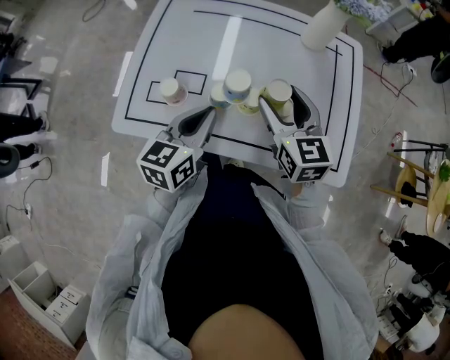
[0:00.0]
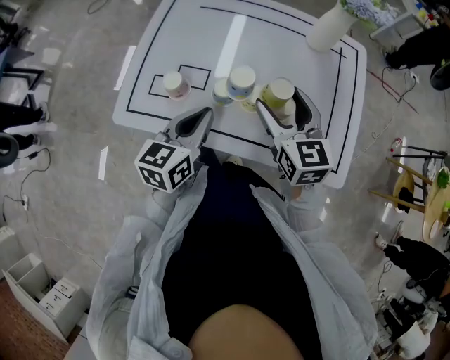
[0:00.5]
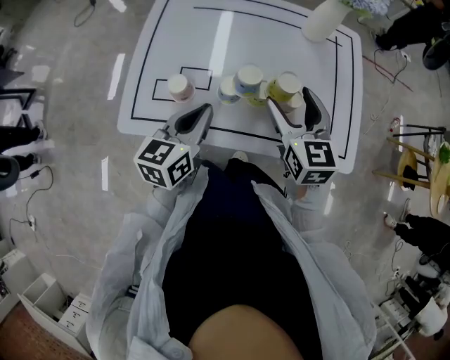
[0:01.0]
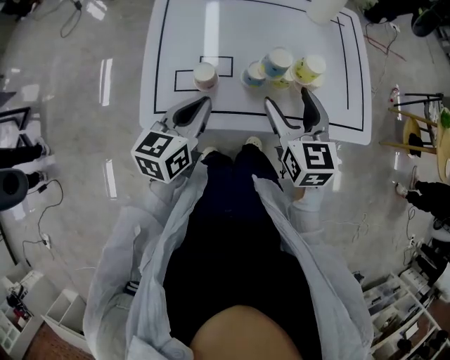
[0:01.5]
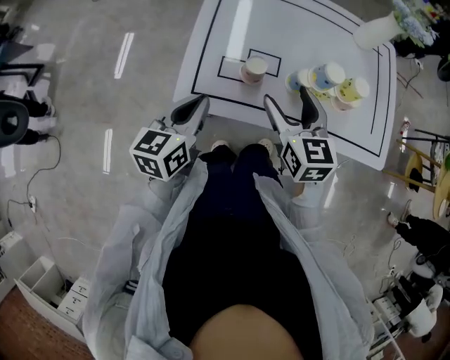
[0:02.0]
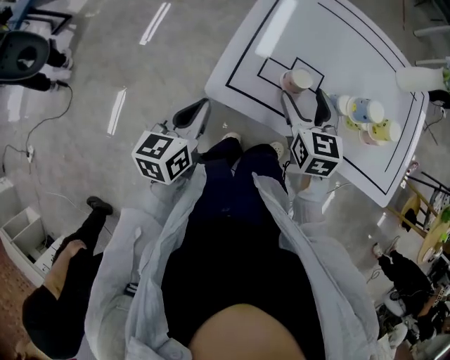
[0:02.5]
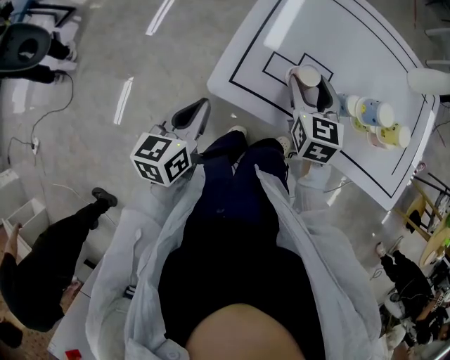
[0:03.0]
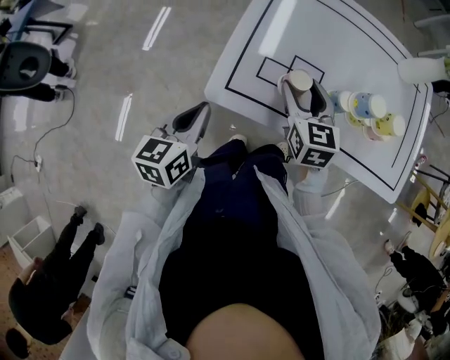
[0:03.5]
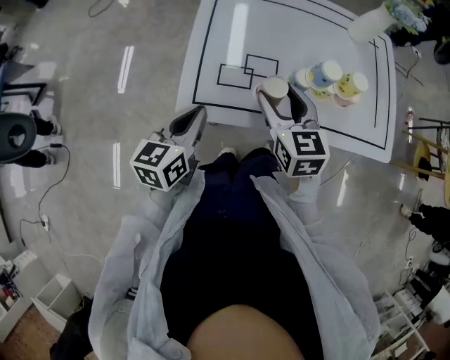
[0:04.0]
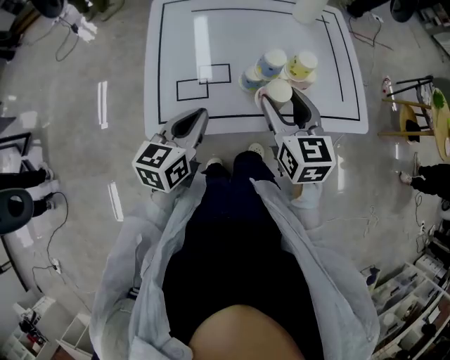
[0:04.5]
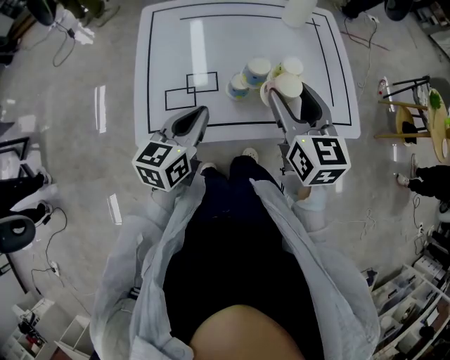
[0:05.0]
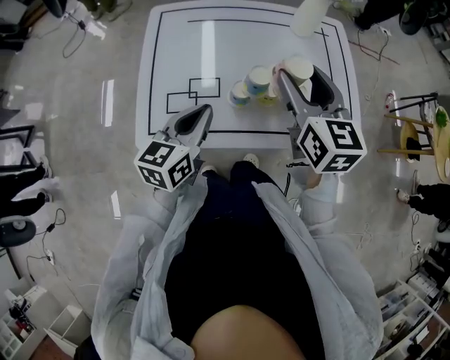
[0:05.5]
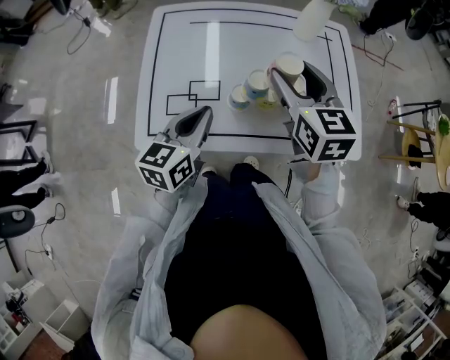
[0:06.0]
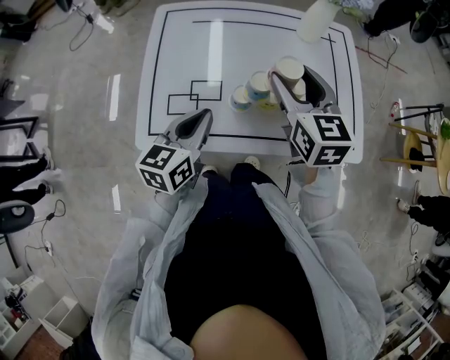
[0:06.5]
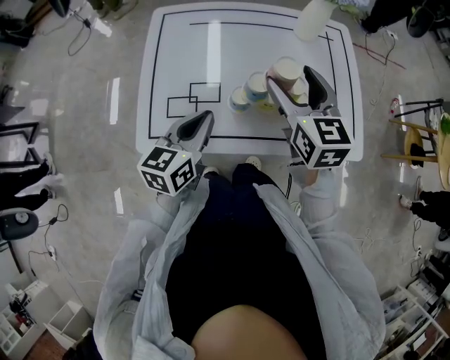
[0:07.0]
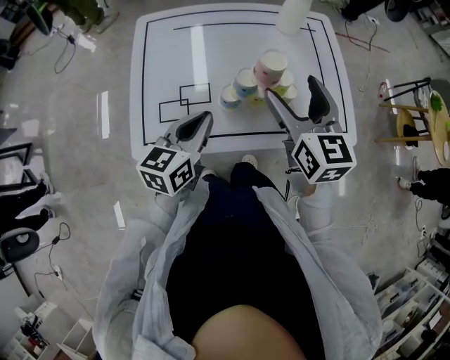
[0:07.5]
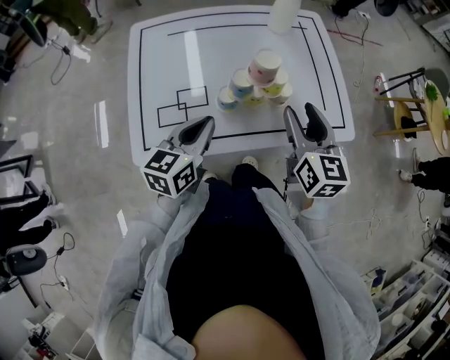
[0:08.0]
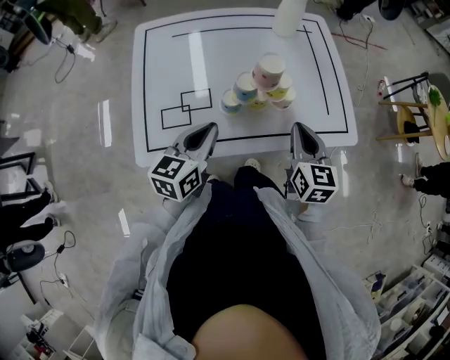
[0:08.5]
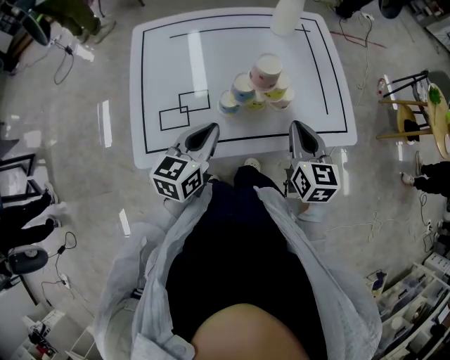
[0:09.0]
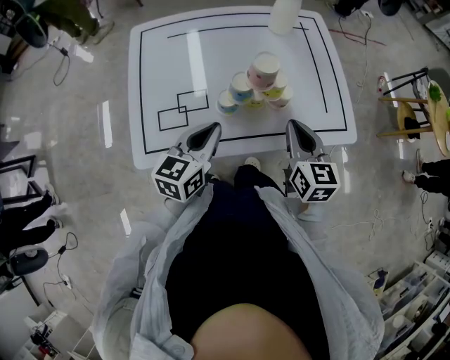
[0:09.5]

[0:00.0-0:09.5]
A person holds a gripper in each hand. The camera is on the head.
0:00.0 to 0:02.0: The right gripper travels to the left and backward by approximately 20 cm. Meanwhile the left gripper shifts some 25 cm to the left.
0:02.0 to 0:04.0: The right gripper moves roughly 10 cm downward and comes back, while the left gripper reaches some 10 cm to the left, then returns.
0:04.0 to 0:05.5: The right gripper heads to the right, upward and forward, covering about 25 cm, while the left gripper moves to the right and forward, approximately 20 cm.
0:05.5 to 0:07.5: The grippers move only a little.
0:07.5 to 0:09.5: The right gripper moves downward and to the right, approximately 10 cm, and closes up.

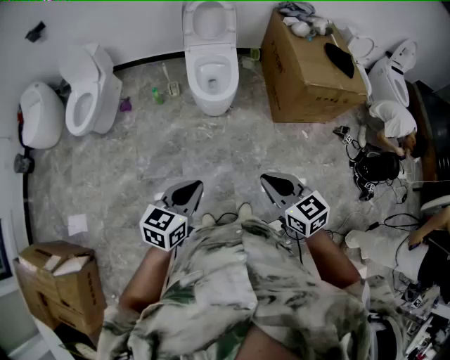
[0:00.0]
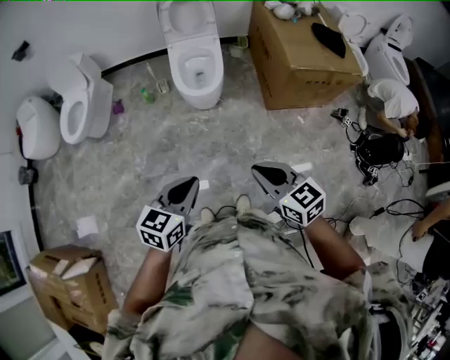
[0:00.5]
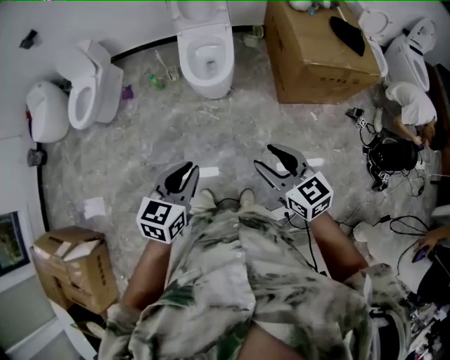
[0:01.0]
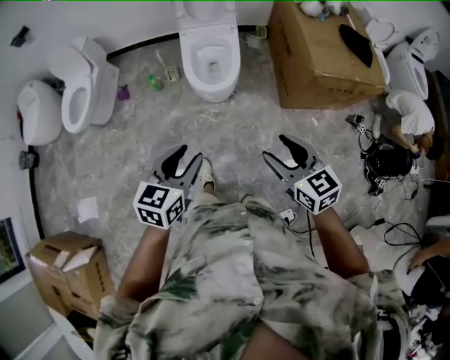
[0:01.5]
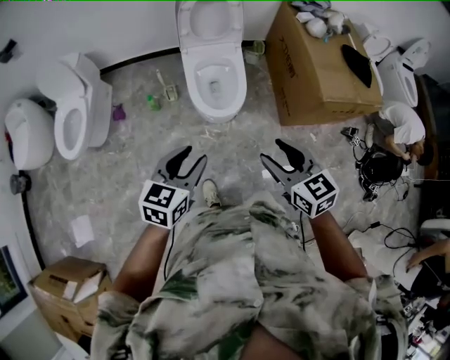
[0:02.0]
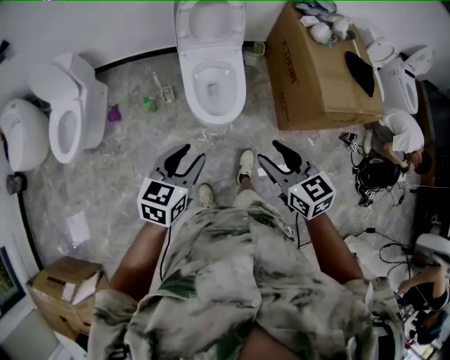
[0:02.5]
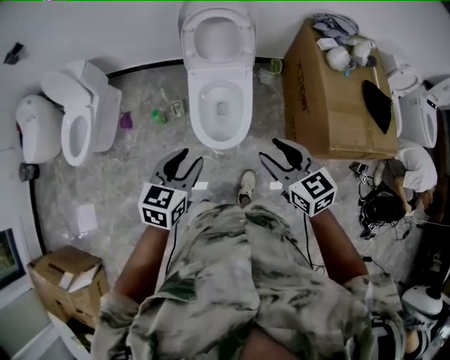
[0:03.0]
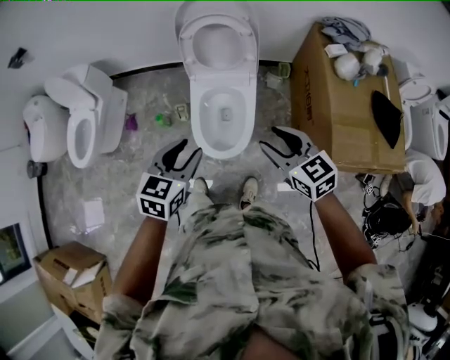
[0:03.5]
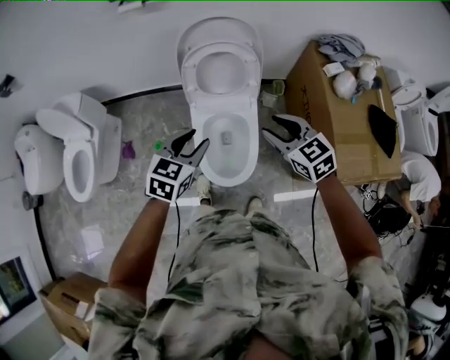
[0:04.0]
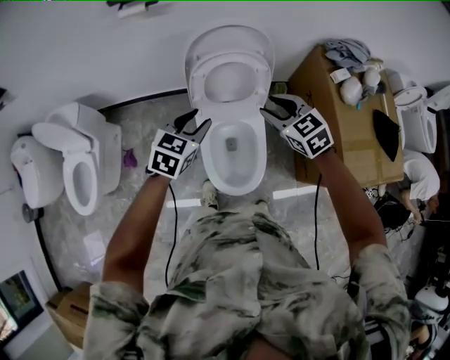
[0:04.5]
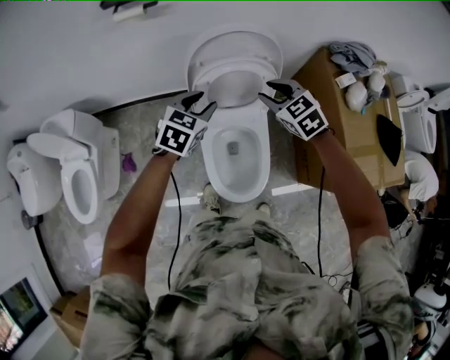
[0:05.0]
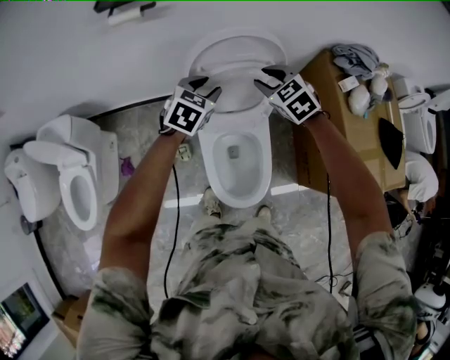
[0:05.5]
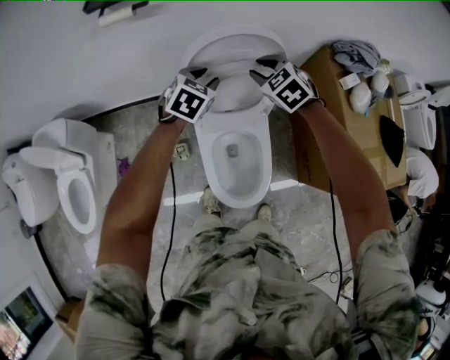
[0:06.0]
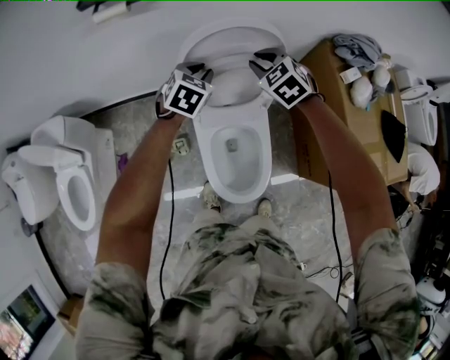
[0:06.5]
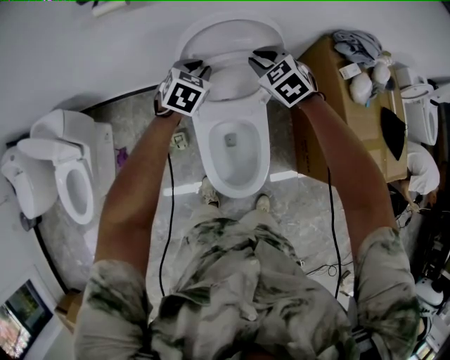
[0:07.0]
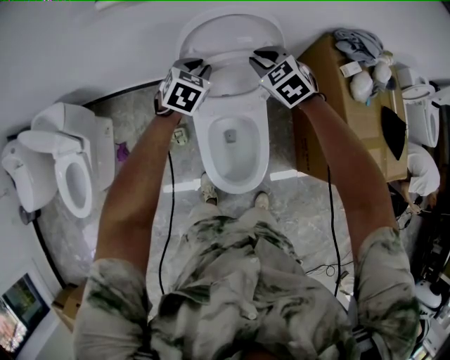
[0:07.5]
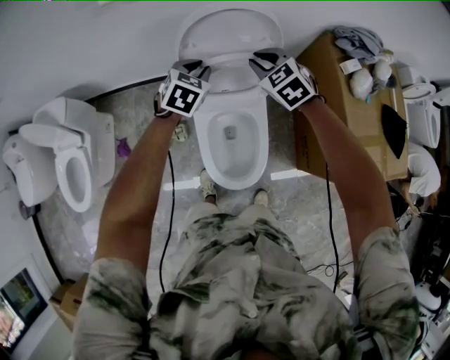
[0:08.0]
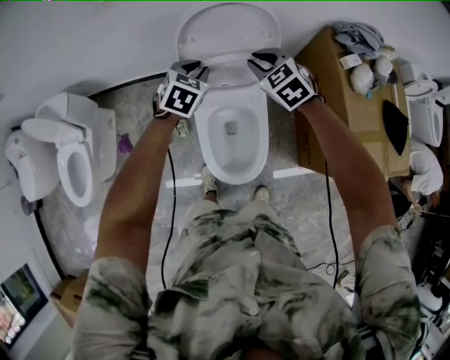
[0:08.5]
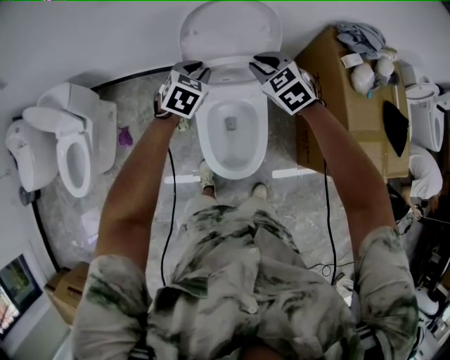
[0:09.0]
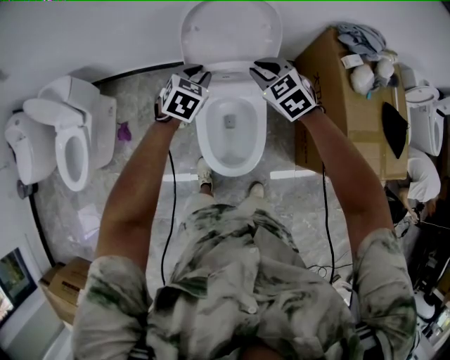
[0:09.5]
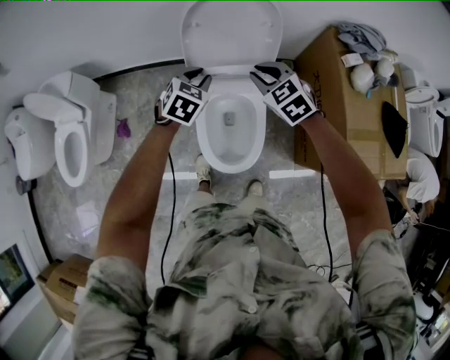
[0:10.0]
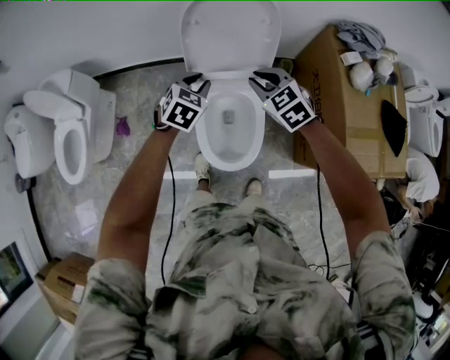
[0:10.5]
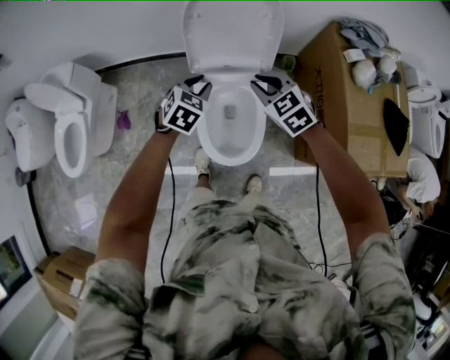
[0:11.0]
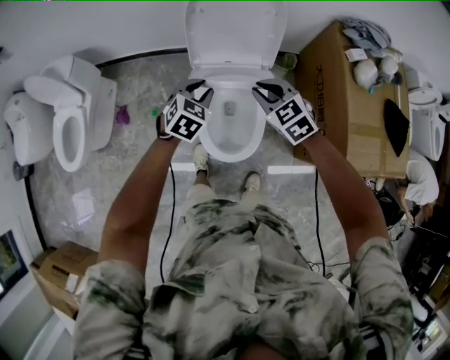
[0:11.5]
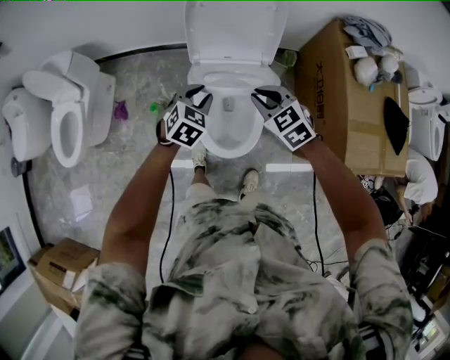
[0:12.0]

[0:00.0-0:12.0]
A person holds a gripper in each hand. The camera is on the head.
0:00.0 to 0:02.0: Both grippers travel together forward, approximately 35 cm. The left gripper opens, while the right gripper opens.
0:02.0 to 0:04.0: The pair of grippers is taken forward, about 50 cm.
0:04.0 to 0:06.0: The grippers both shift forward by about 35 cm. The right gripper turns by some 30 degrees.
0:06.0 to 0:08.0: The two grippers go approximately 5 cm backward.
0:08.0 to 0:10.0: Both grippers travel together backward, approximately 10 cm.
0:10.0 to 0:12.0: Both grippers travel together backward, some 10 cm.

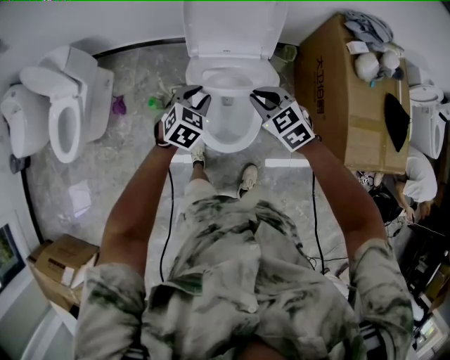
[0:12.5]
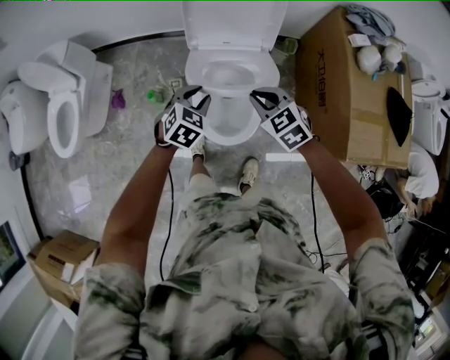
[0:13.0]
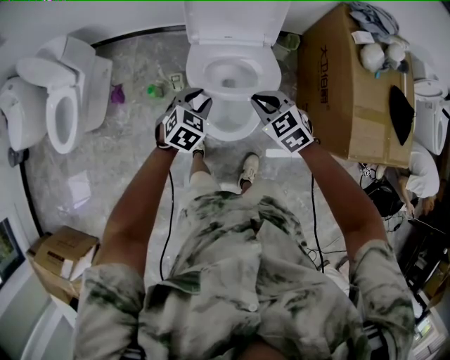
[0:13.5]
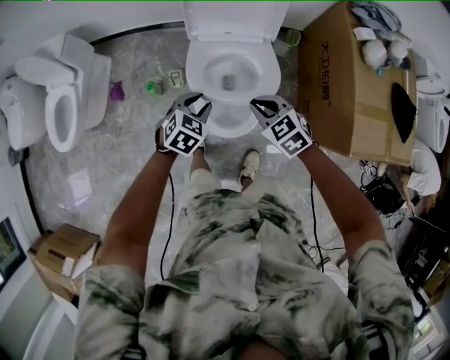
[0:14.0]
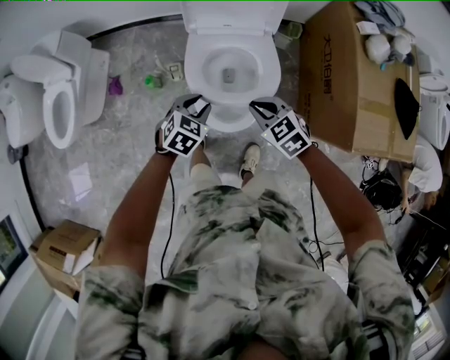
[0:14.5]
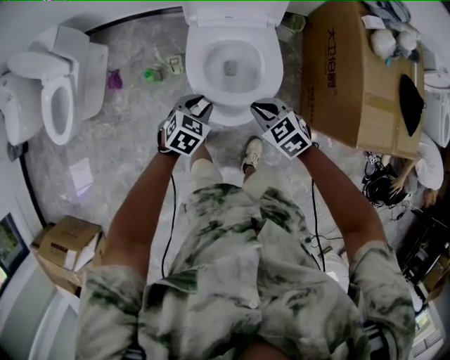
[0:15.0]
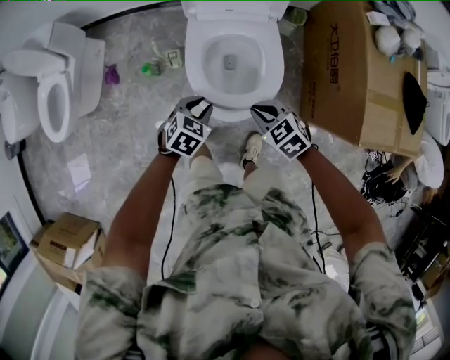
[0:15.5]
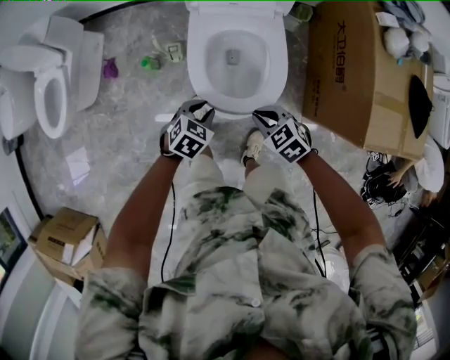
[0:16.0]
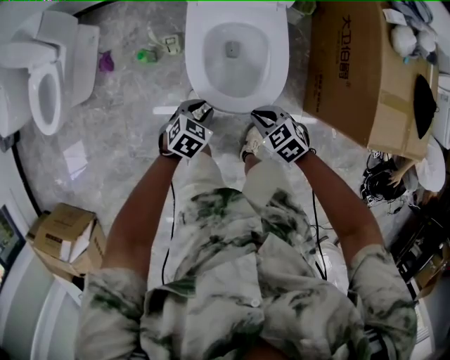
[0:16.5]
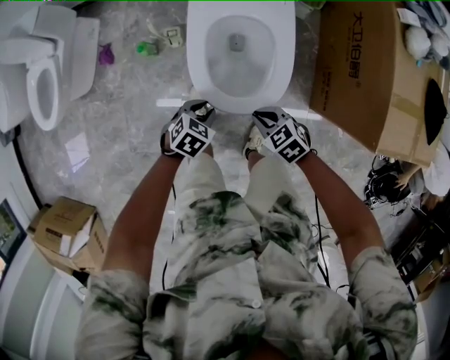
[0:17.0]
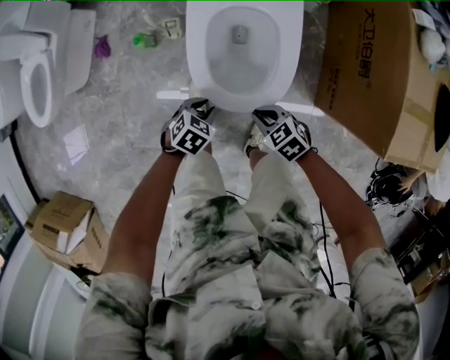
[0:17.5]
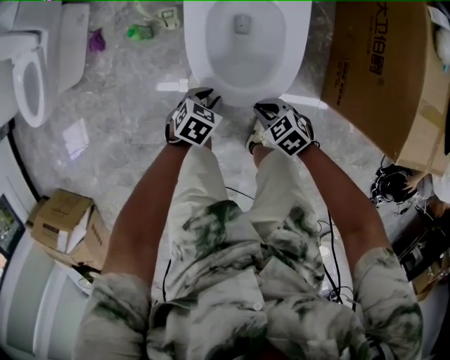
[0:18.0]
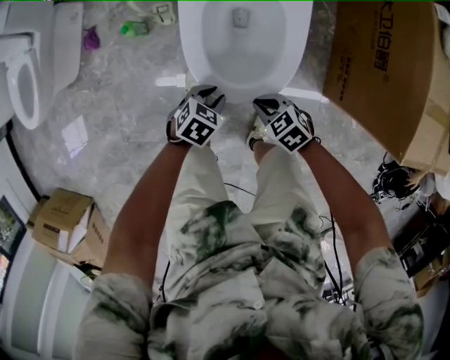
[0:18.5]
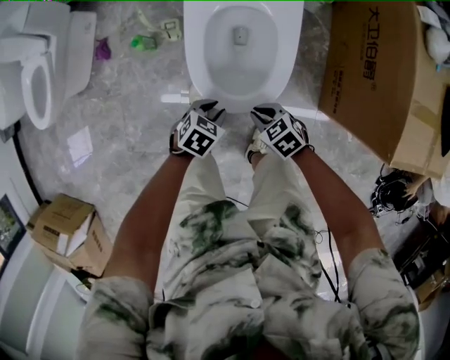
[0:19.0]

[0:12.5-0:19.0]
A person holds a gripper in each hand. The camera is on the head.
0:12.5 to 0:14.5: The grippers both shift backward and downward by approximately 10 cm.
0:14.5 to 0:17.0: Both grippers move downward, some 20 cm.
0:17.0 to 0:19.0: The grippers both shift downward by roughly 10 cm.
